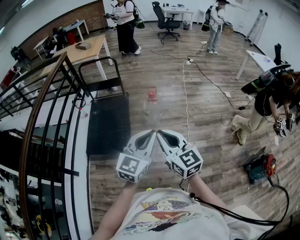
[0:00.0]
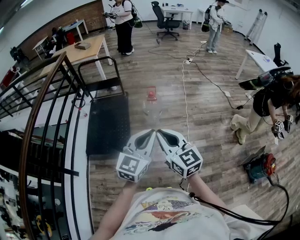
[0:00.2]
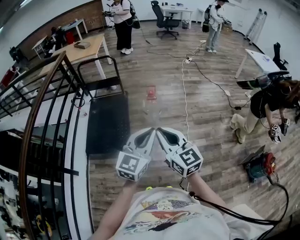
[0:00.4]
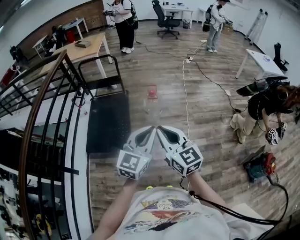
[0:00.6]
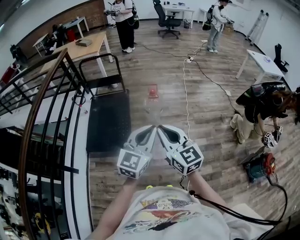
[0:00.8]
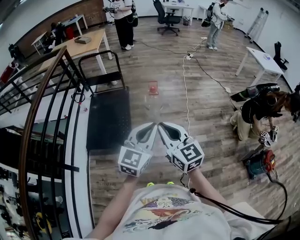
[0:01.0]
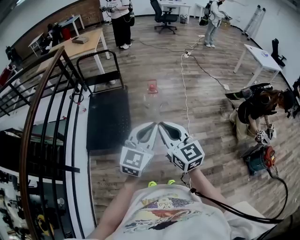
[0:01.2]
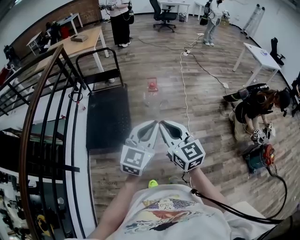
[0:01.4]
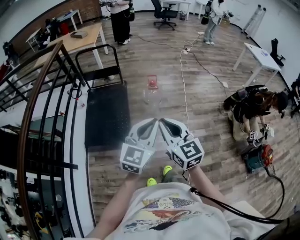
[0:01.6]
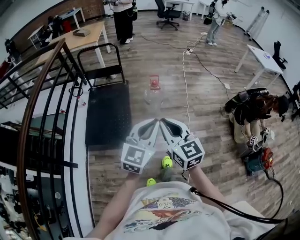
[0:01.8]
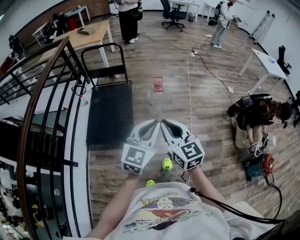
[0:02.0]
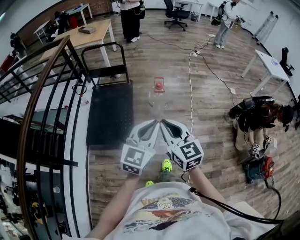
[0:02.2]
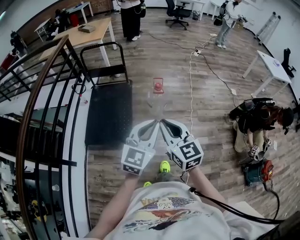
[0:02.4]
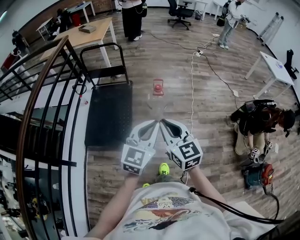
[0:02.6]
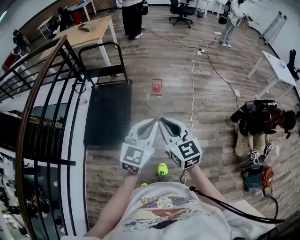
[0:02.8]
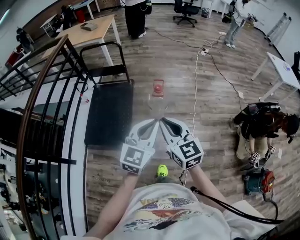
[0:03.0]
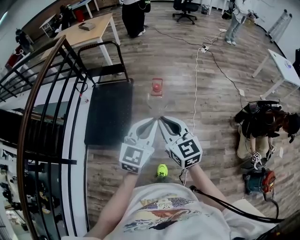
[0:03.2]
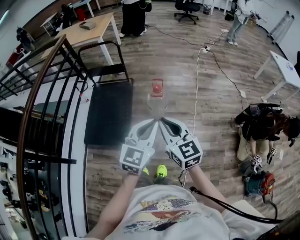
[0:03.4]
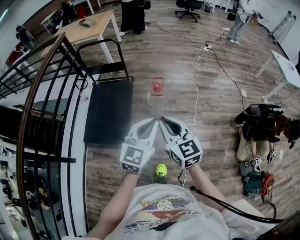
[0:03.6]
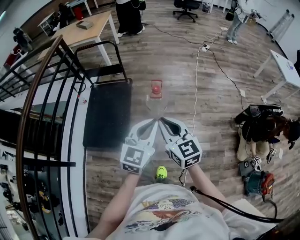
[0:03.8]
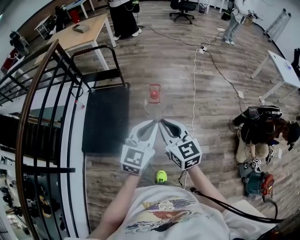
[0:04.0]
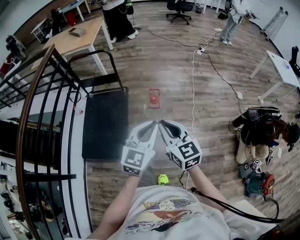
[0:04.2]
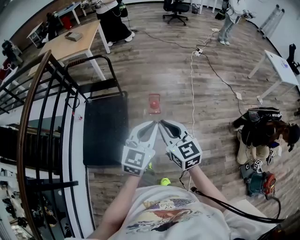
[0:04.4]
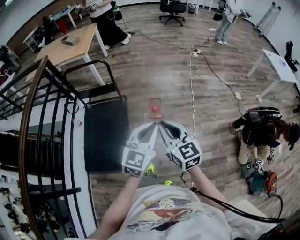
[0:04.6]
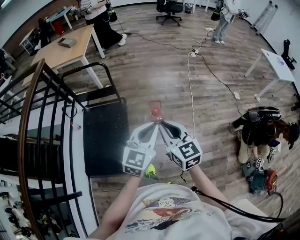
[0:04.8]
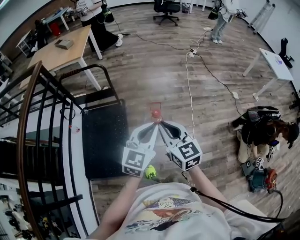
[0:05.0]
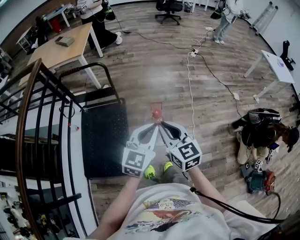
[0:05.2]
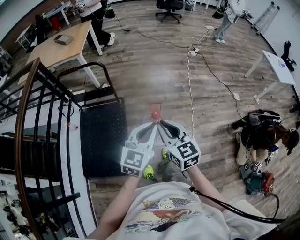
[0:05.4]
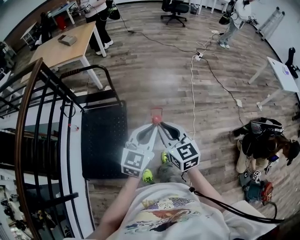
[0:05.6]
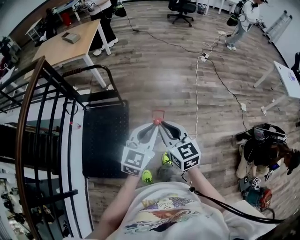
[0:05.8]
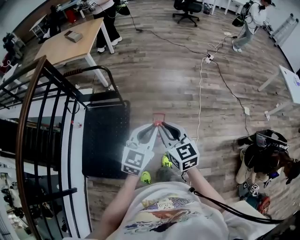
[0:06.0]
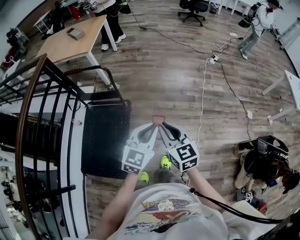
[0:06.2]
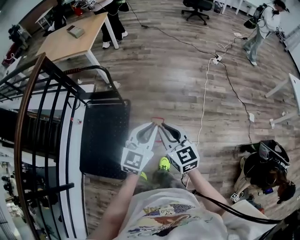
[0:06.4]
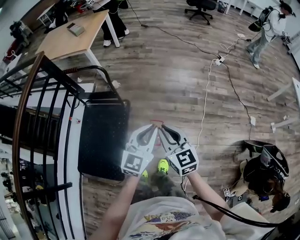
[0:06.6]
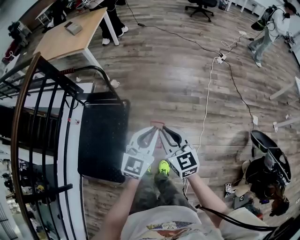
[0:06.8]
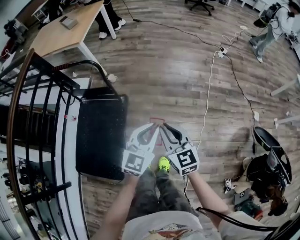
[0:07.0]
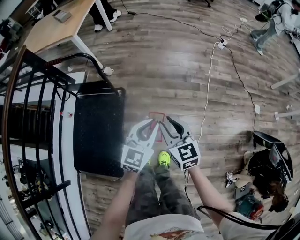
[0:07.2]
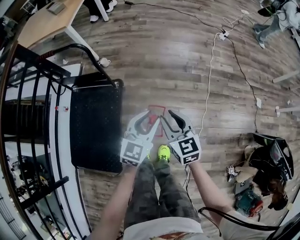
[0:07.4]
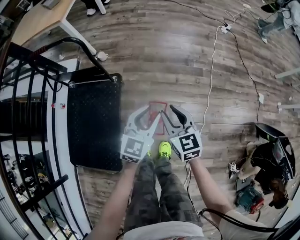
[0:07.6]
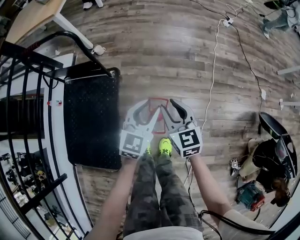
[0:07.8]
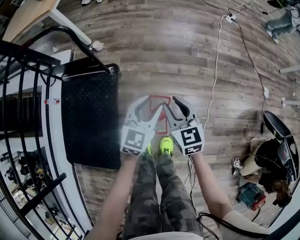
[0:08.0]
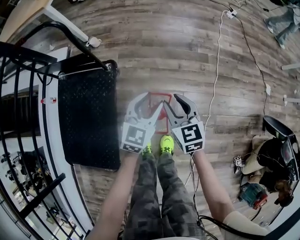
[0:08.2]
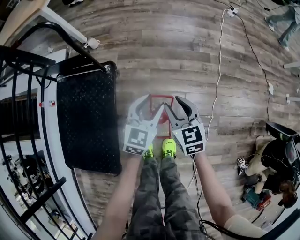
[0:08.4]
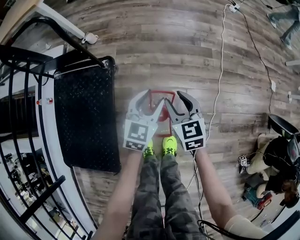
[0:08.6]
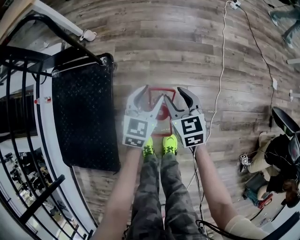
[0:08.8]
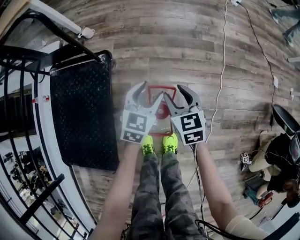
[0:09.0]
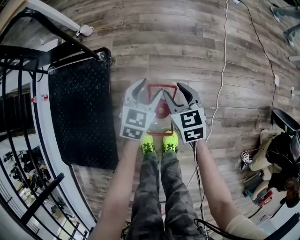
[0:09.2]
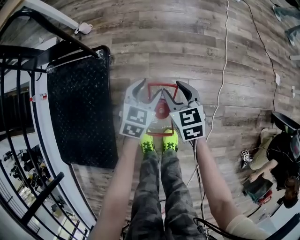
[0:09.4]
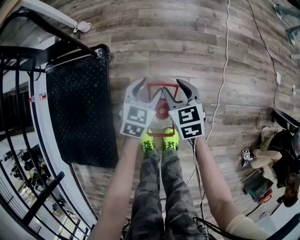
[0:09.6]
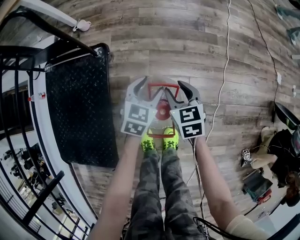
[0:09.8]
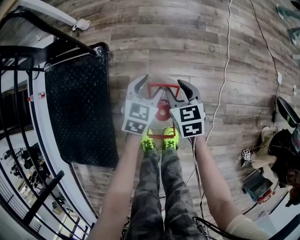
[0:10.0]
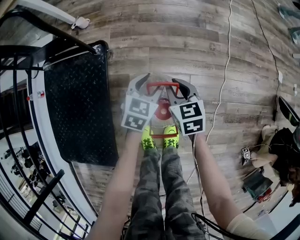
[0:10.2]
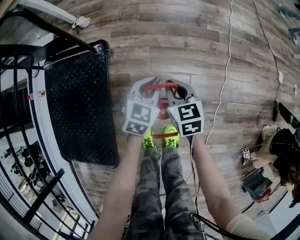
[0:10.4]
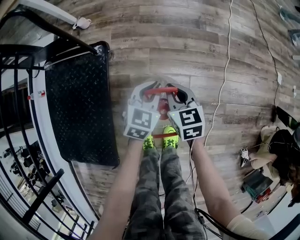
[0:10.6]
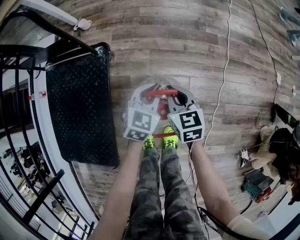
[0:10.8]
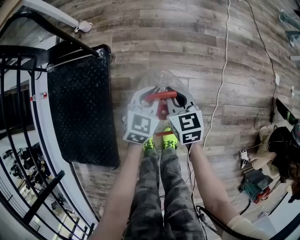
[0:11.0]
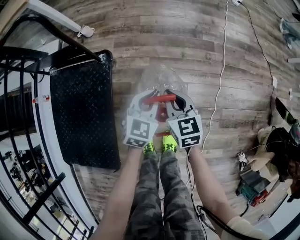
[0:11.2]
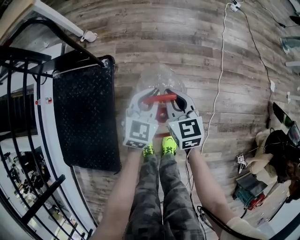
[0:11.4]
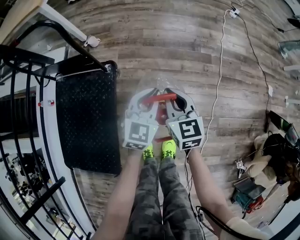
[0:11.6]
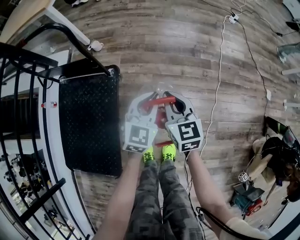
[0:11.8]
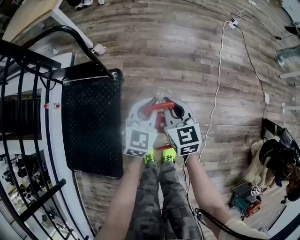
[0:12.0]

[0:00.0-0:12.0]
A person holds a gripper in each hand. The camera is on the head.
0.0 to 1.6 s: Both grippers move to the left, about 5 cm.
1.6 to 3.0 s: The two grippers go about 20 cm forward and to the right.
3.0 to 4.4 s: The grippers both shift forward by about 20 cm.
4.4 to 6.0 s: Both grippers travel together forward, roughly 25 cm.
6.0 to 7.6 s: Both grippers move downward and forward, approximately 35 cm. The right gripper opens up. Meanwhile the left gripper opens its fingers.
7.6 to 9.0 s: Both grippers move downward, roughly 25 cm. The left gripper opens its fingers.
9.0 to 10.4 s: Both grippers travel together downward, approximately 5 cm. The right gripper closes, while the left gripper closes up.
10.4 to 12.0 s: Both grippers move upward, some 20 cm.

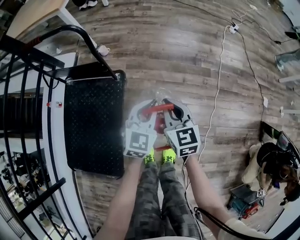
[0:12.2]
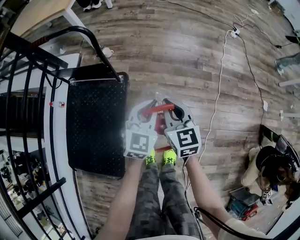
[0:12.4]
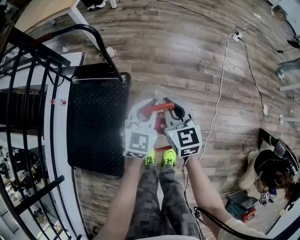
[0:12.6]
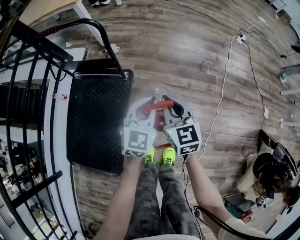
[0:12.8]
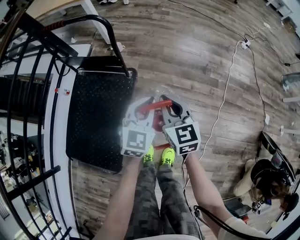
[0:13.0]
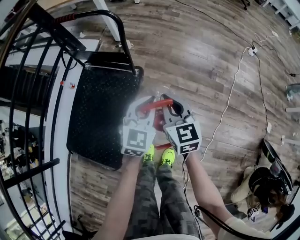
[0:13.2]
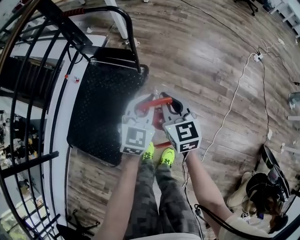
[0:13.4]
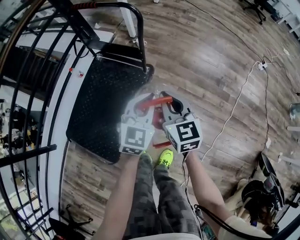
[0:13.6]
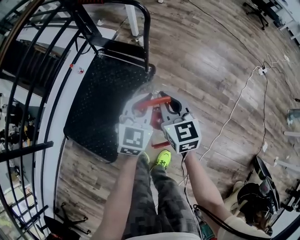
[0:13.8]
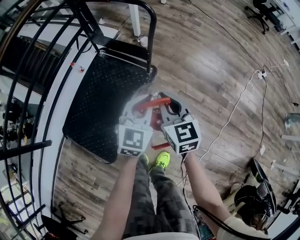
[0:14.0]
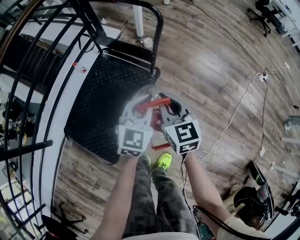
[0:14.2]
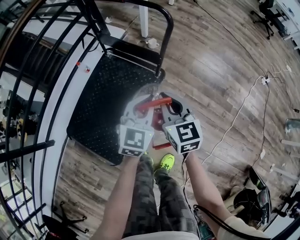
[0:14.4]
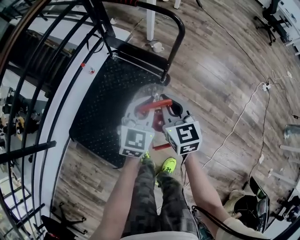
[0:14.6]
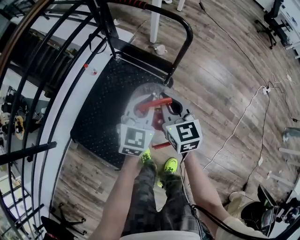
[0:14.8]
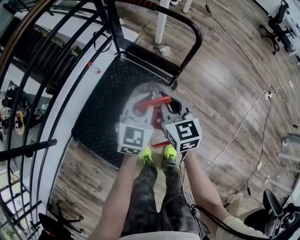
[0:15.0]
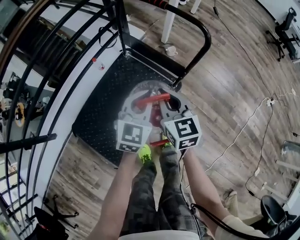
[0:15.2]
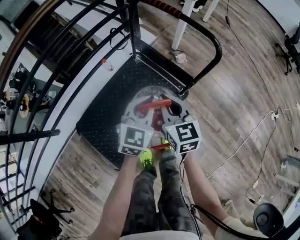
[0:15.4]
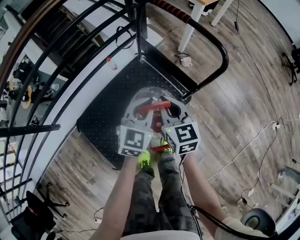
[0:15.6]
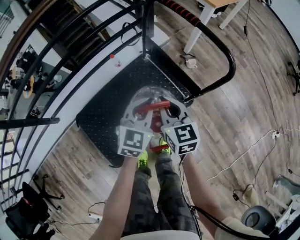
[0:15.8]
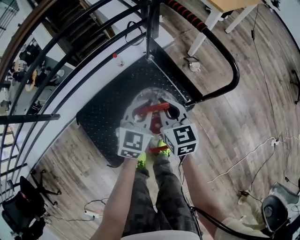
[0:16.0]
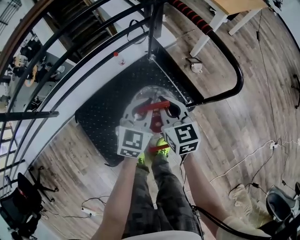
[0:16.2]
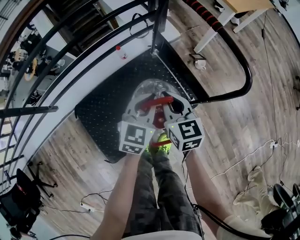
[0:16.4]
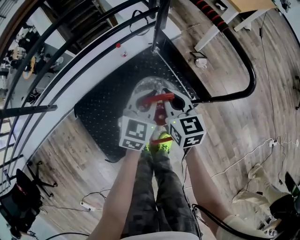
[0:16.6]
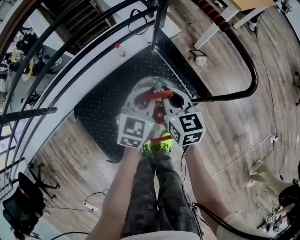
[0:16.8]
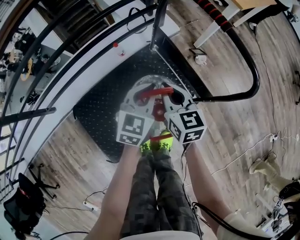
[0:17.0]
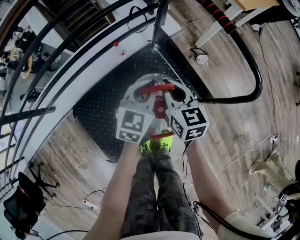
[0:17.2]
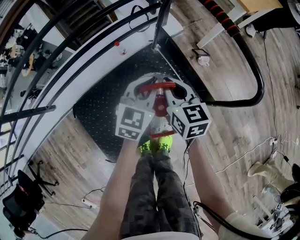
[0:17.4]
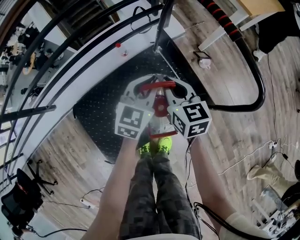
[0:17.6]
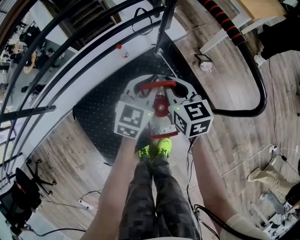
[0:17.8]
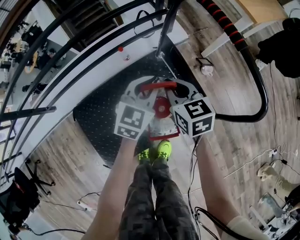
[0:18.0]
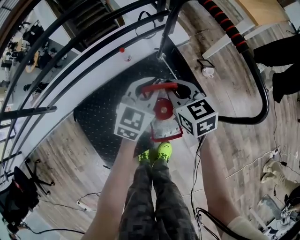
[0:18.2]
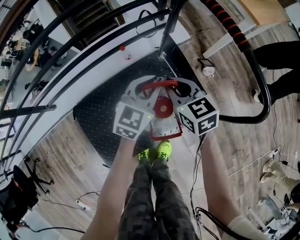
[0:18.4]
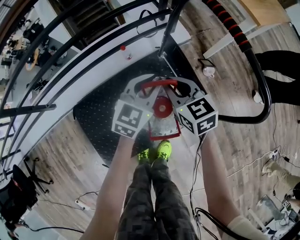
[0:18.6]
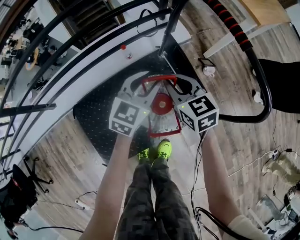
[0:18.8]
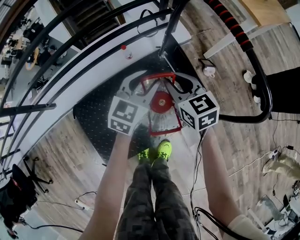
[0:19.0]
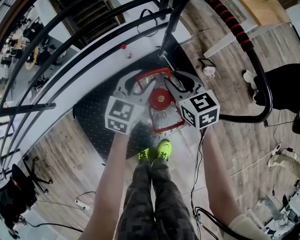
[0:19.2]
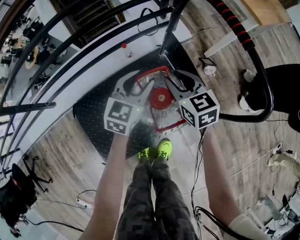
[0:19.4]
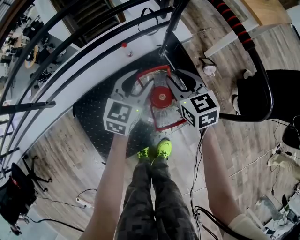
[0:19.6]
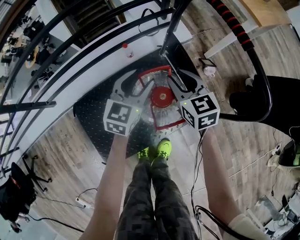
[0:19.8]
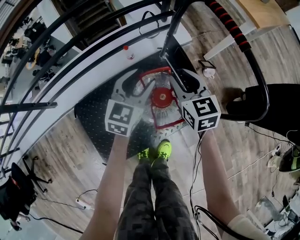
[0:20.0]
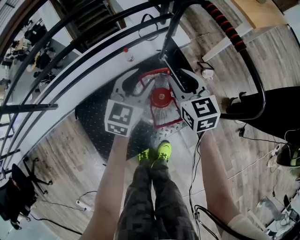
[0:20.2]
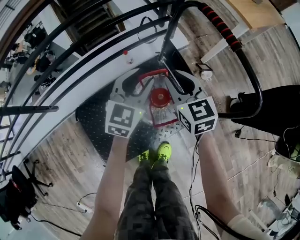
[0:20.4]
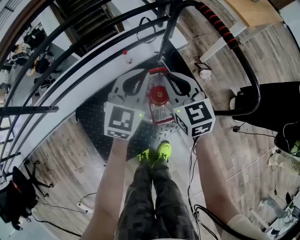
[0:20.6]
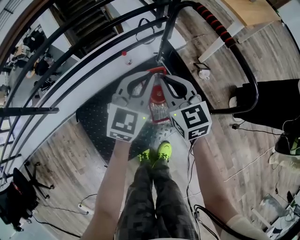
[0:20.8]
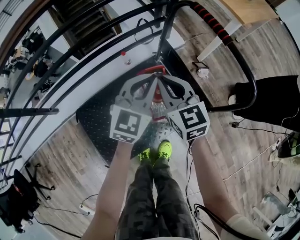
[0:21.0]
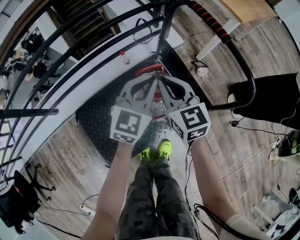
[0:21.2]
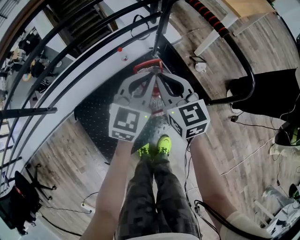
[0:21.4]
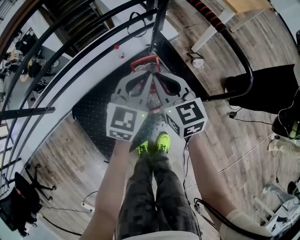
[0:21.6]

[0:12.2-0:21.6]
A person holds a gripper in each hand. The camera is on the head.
12.2 to 13.8 s: Both grippers travel together to the left and upward, some 15 cm. The right gripper turns by roughly 20 degrees, while the left gripper changes its angle by some 20 degrees.
13.8 to 15.4 s: The grippers both shift to the left and forward by roughly 30 cm.
15.4 to 17.0 s: Both grippers travel together forward and downward, some 15 cm.
17.0 to 18.4 s: The two grippers go approximately 10 cm forward. The right gripper turns by roughly 20 degrees.
18.4 to 20.0 s: The left gripper is displaced to the left by roughly 5 cm, and opens its fingers, while the right gripper opens up.
20.0 to 21.6 s: The left gripper shifts roughly 10 cm upward and backward, and closes up, while the right gripper heads backward and upward, covering about 10 cm, and closes its fingers.

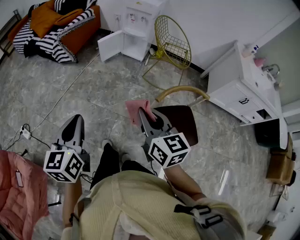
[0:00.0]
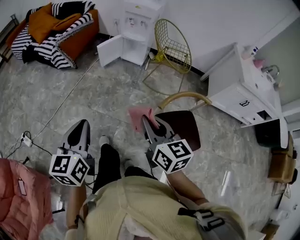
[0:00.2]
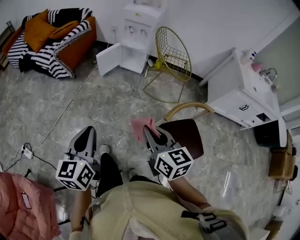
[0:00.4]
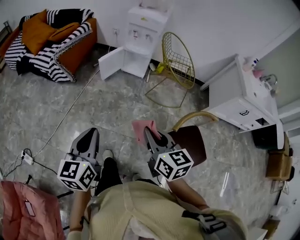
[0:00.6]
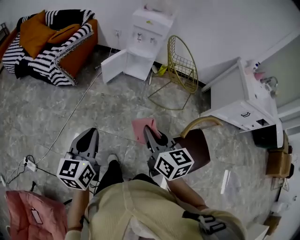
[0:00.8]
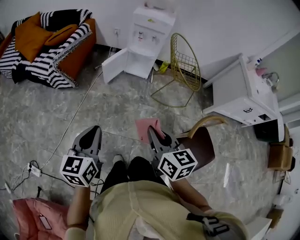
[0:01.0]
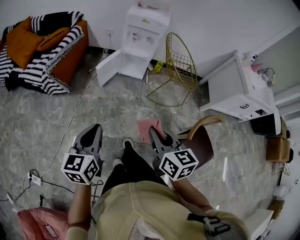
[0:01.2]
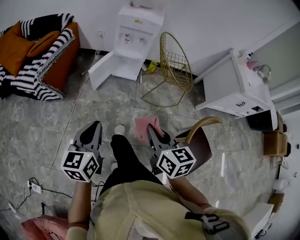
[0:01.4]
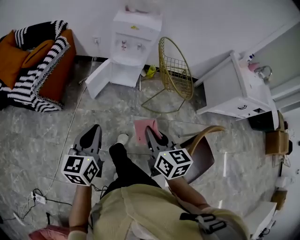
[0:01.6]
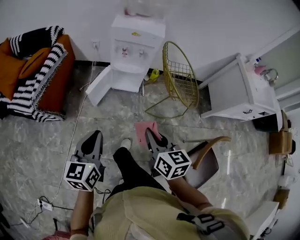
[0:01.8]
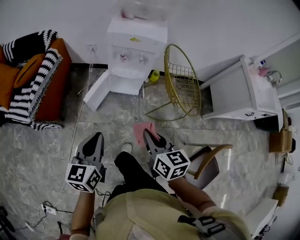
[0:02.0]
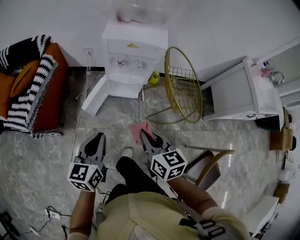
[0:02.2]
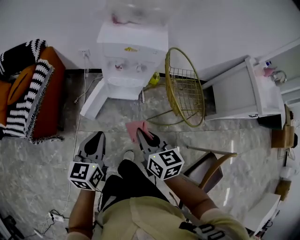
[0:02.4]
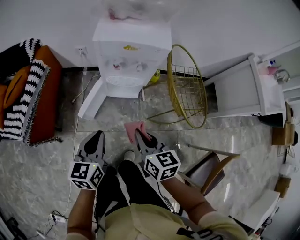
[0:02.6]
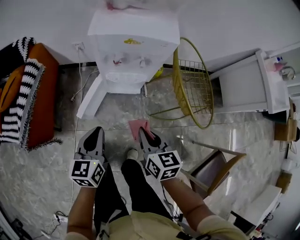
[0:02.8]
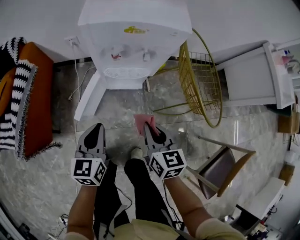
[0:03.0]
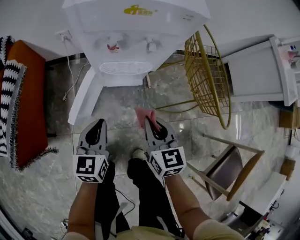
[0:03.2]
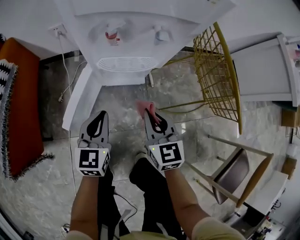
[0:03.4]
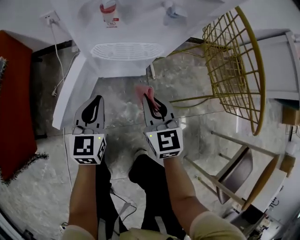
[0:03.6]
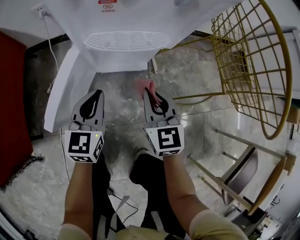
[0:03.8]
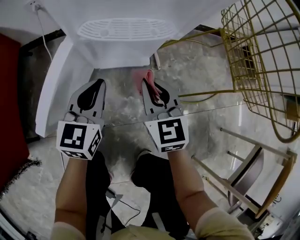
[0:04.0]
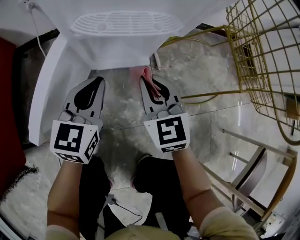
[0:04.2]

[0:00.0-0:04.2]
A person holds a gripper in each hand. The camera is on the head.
0.0 to 1.4 s: The left gripper heads forward, covering some 35 cm, and rotates about 20 degrees, while the right gripper heads forward and to the left, covering roughly 30 cm, and changes its angle by some 20 degrees.
1.4 to 2.8 s: The two grippers travel together, forward, roughly 40 cm. The right gripper goes roughly 20 cm downward.
2.8 to 4.2 s: The grippers both shift downward and forward by roughly 40 cm. The right gripper changes its angle by roughly 30 degrees. The left gripper changes its angle by approximately 20 degrees.
